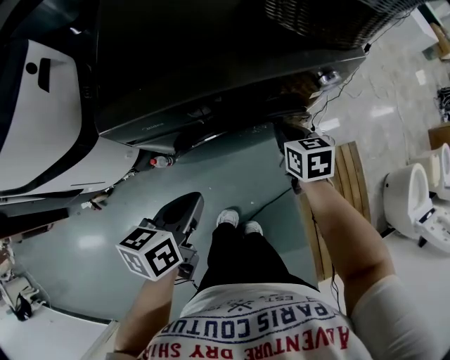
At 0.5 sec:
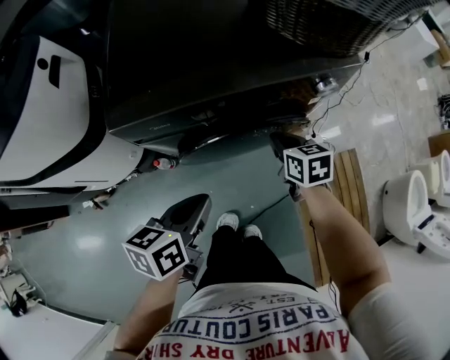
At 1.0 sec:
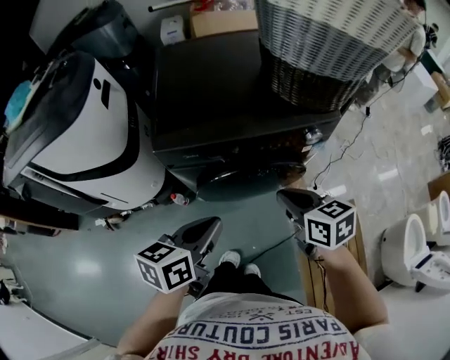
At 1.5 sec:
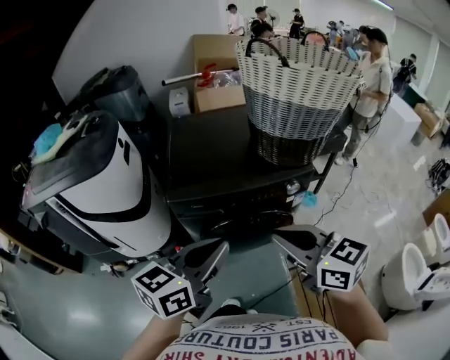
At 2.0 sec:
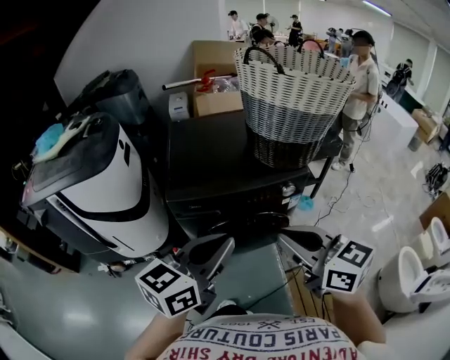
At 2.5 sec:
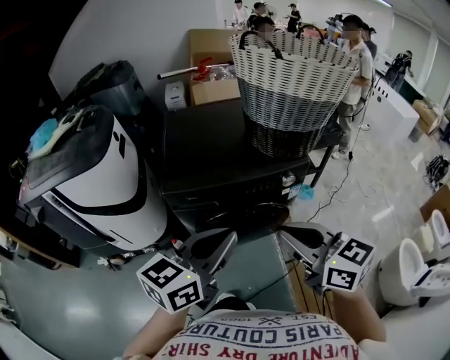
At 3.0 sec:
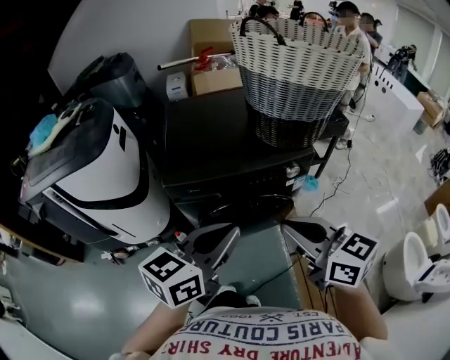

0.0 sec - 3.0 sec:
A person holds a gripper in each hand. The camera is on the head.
0.0 sec - 1.5 sec: The left gripper travels upward by roughly 30 cm, and turns by about 30 degrees. Meanwhile the right gripper shifts about 40 cm upward and backward, and points its fingers approximately 30 degrees further upward.
1.5 sec - 3.0 sec: The grippers stay close to where they were, moving slightly.

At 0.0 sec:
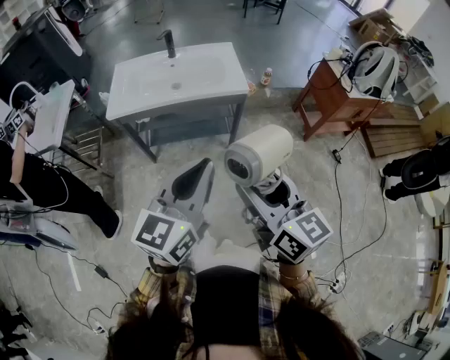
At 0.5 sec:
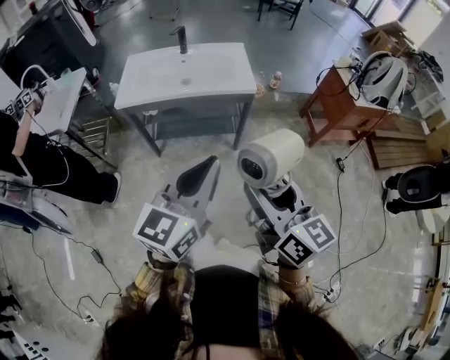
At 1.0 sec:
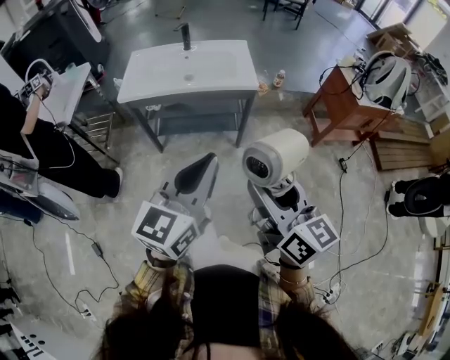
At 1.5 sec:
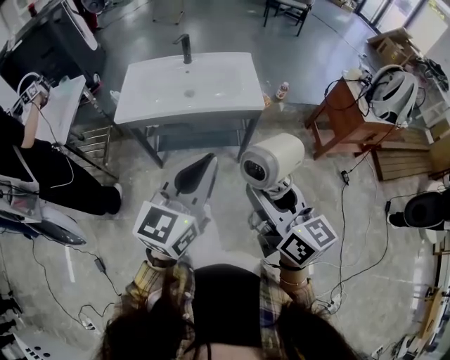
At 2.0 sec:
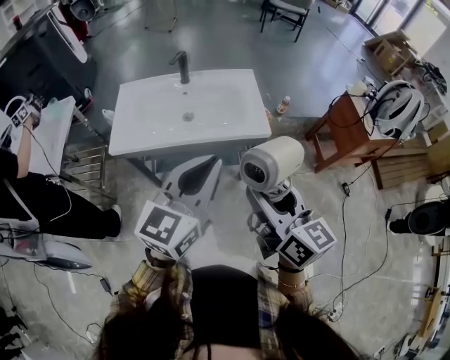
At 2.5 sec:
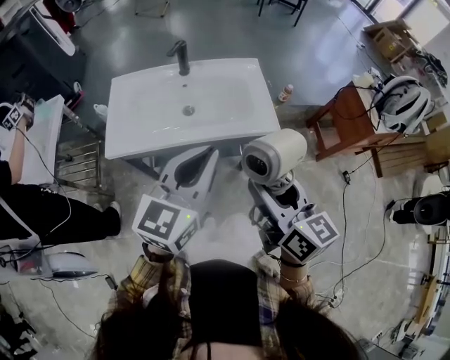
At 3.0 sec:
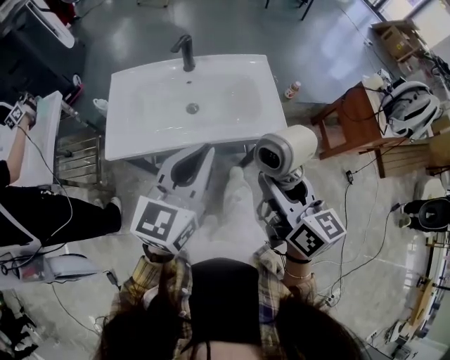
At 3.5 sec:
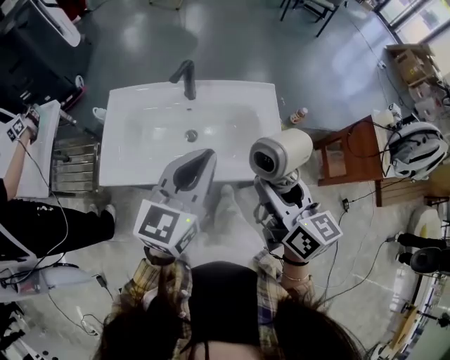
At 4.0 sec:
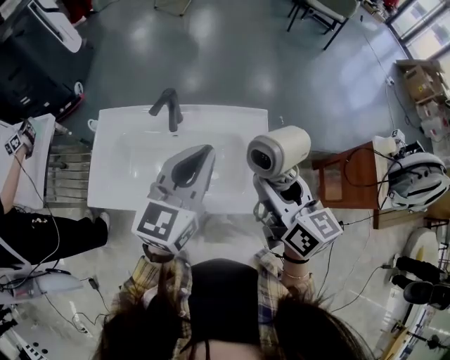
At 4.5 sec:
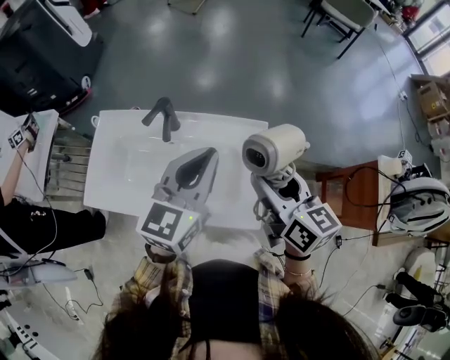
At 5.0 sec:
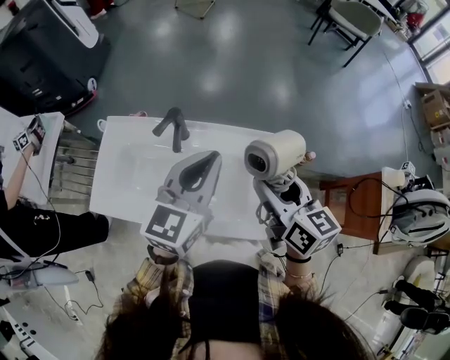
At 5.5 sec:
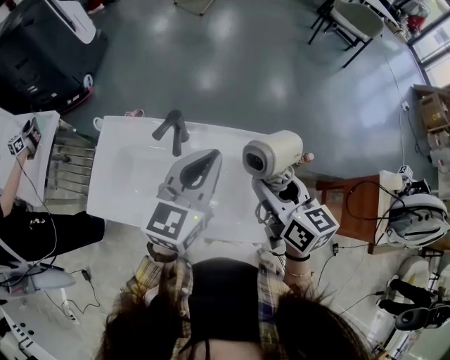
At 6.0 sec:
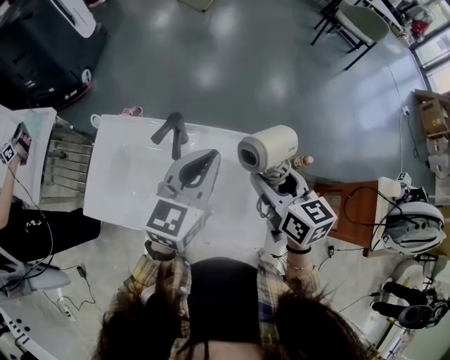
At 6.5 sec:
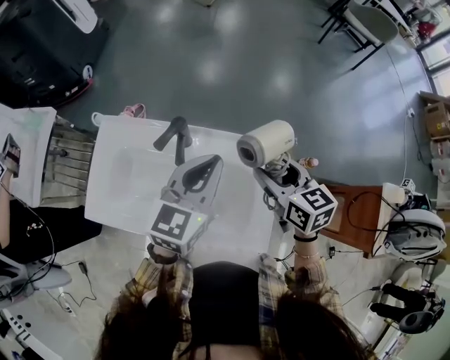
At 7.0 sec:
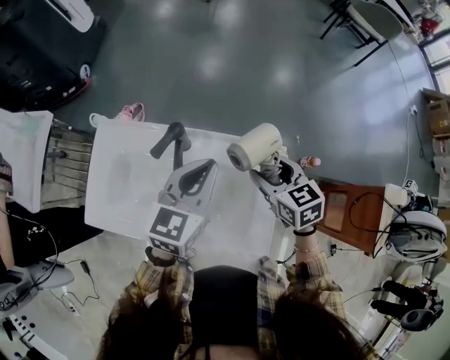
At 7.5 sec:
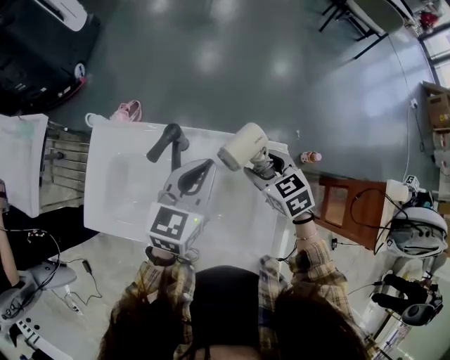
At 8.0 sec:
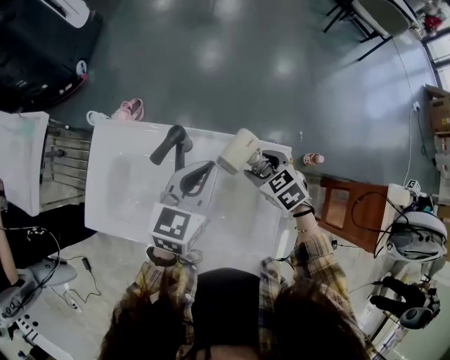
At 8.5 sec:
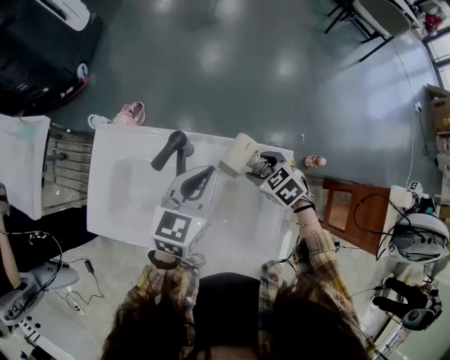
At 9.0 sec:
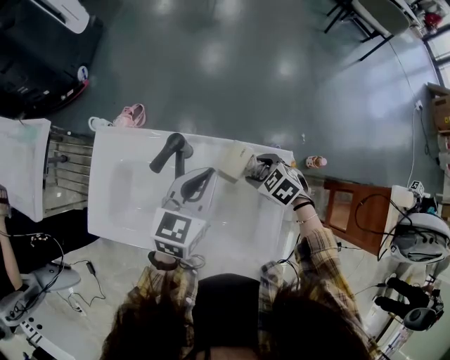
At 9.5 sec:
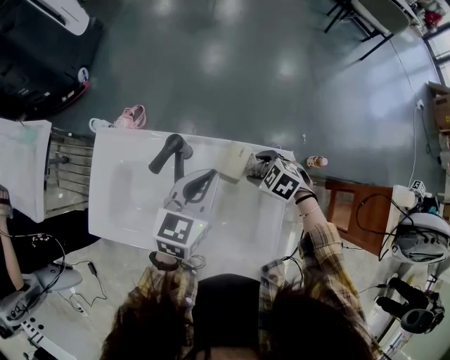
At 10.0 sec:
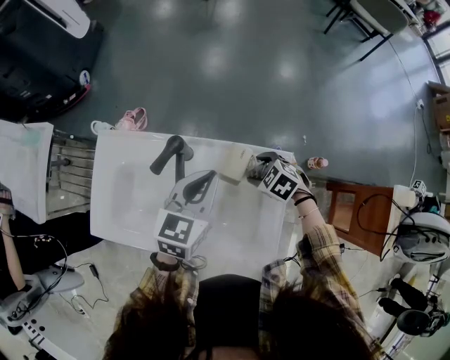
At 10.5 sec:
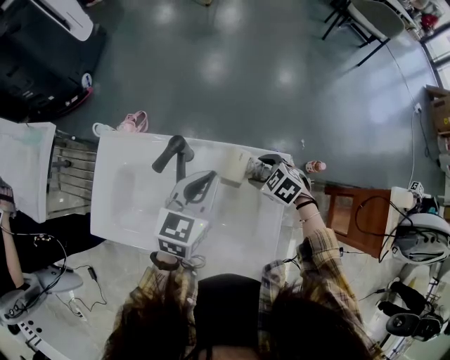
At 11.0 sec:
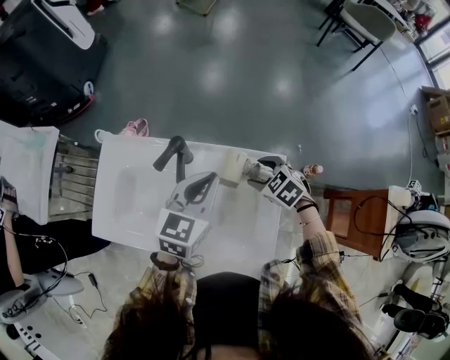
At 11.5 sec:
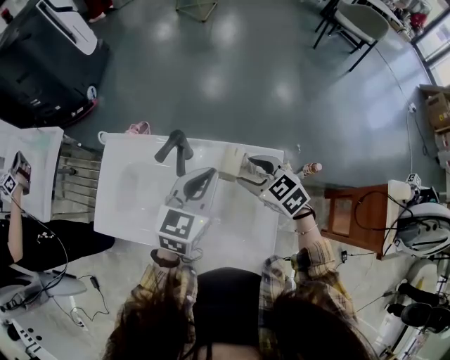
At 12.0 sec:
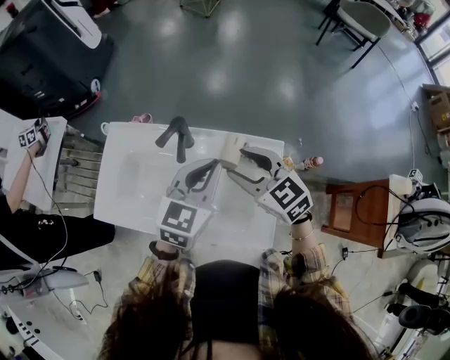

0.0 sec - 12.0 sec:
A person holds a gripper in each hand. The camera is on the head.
0.0 sec - 2.0 sec: The two grippers go roughly 20 cm forward.
2.0 sec - 4.0 sec: The two grippers go about 35 cm forward.
4.0 sec - 6.0 sec: The two grippers go about 15 cm forward.
6.0 sec - 8.0 sec: The right gripper is displaced downward and forward by some 20 cm, and tips its fingers downward by some 30 degrees, while the left gripper travels downward by roughly 10 cm.
8.0 sec - 10.0 sec: The right gripper moves downward, some 5 cm.
10.0 sec - 12.0 sec: The left gripper moves upward and backward, roughly 10 cm; the right gripper shifts some 20 cm upward, and tips its fingers upward by some 40 degrees.

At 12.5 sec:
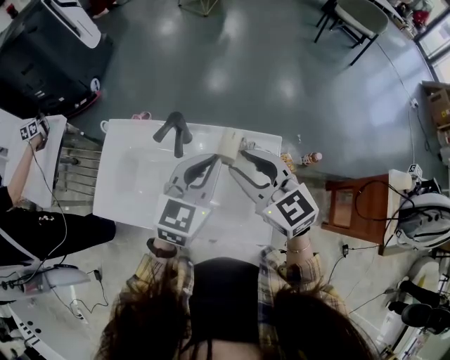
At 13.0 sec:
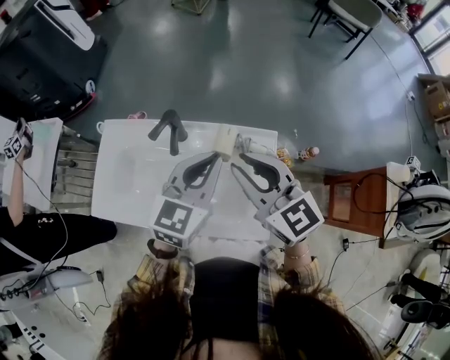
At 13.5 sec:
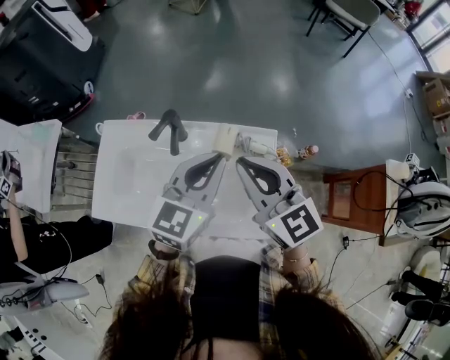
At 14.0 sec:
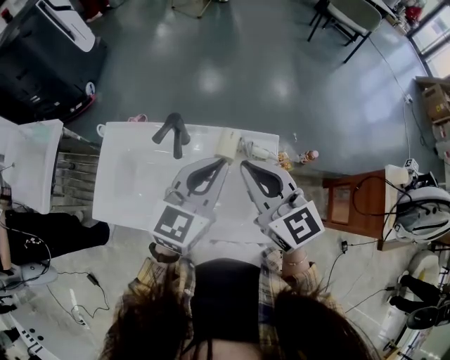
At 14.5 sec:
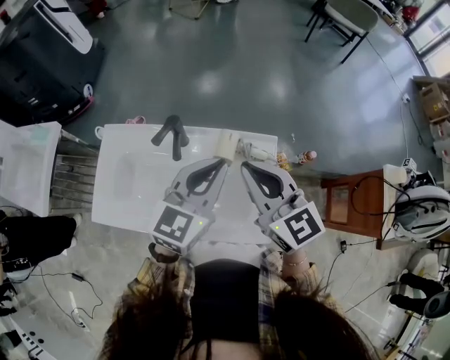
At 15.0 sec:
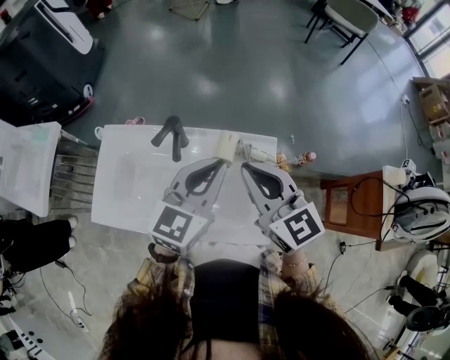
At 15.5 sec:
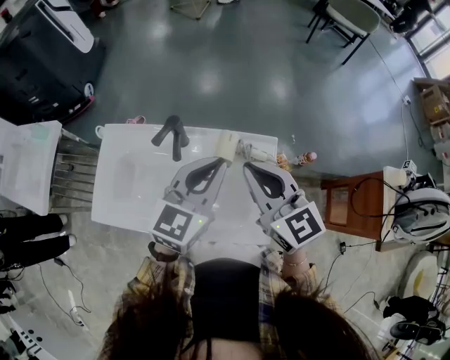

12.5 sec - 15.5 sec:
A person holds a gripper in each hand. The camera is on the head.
12.5 sec - 14.0 sec: The right gripper closes its fingers.
14.0 sec - 15.5 sec: Both grippers stay put.

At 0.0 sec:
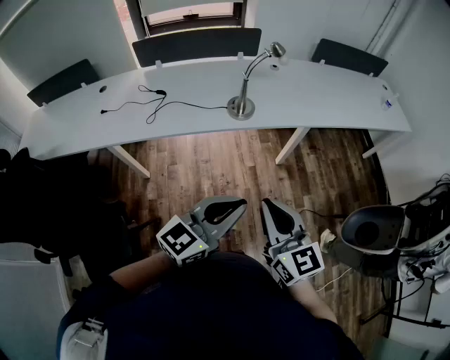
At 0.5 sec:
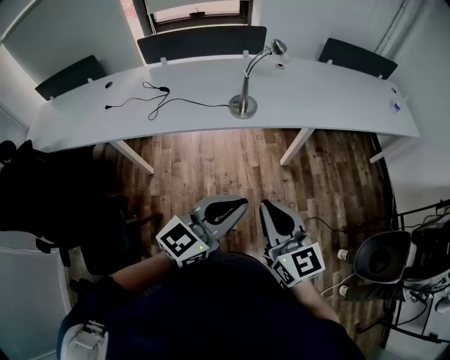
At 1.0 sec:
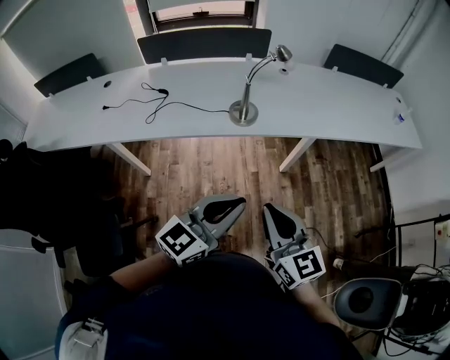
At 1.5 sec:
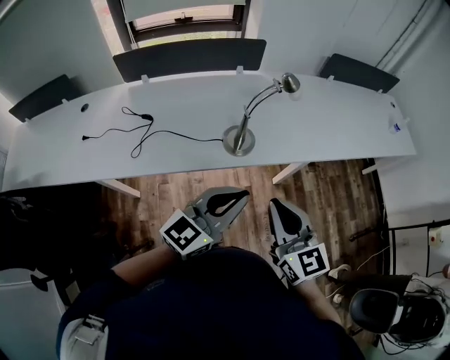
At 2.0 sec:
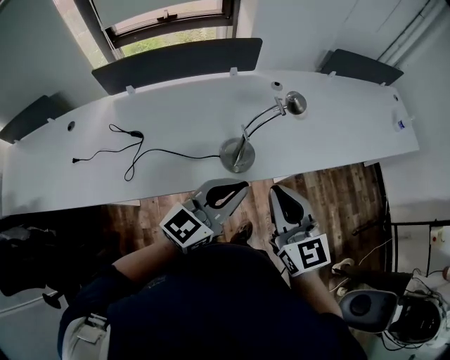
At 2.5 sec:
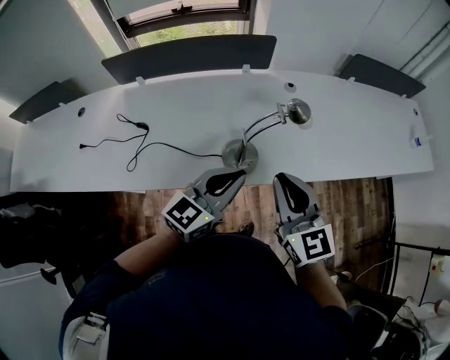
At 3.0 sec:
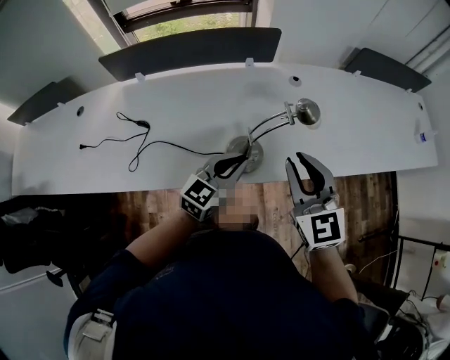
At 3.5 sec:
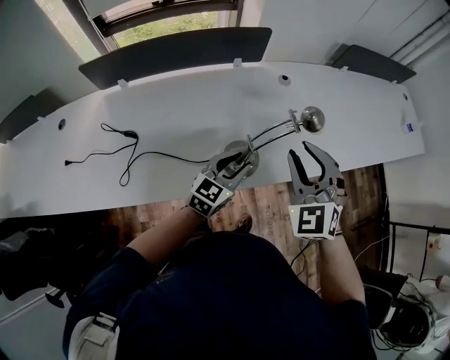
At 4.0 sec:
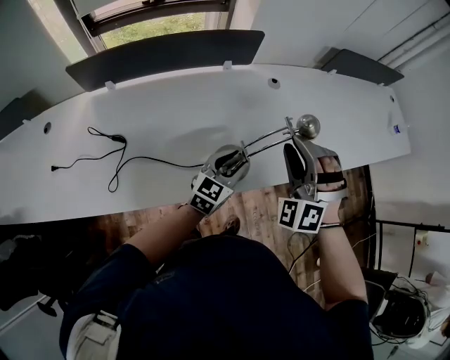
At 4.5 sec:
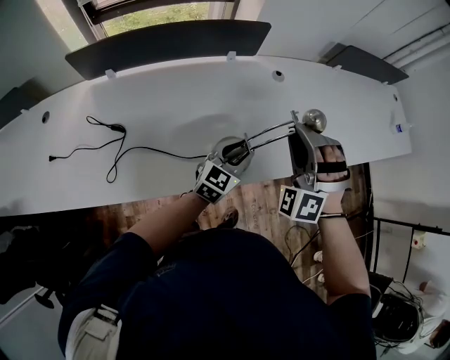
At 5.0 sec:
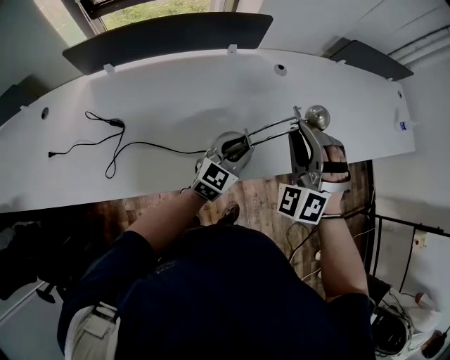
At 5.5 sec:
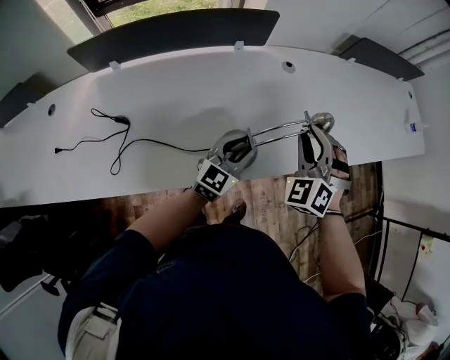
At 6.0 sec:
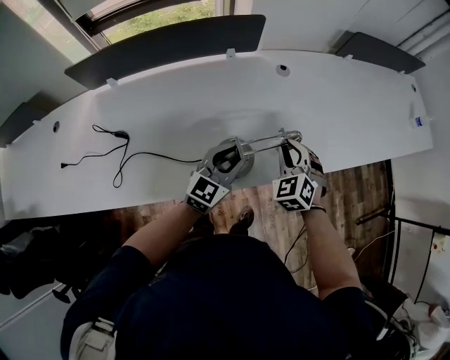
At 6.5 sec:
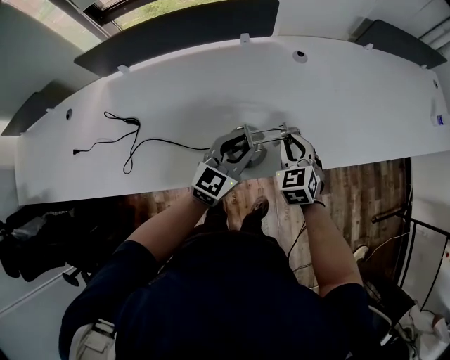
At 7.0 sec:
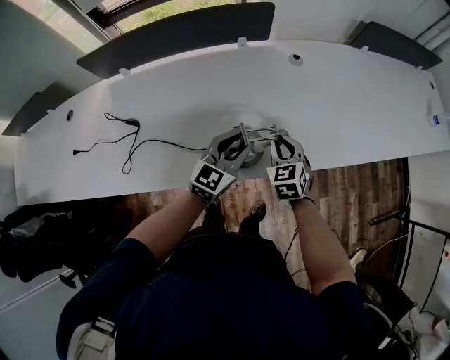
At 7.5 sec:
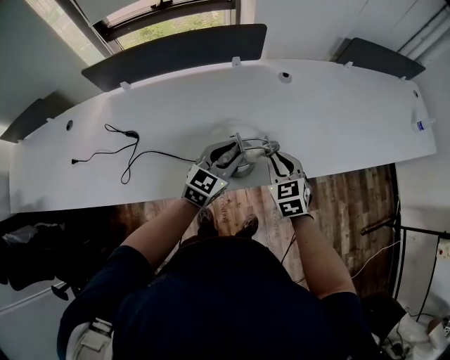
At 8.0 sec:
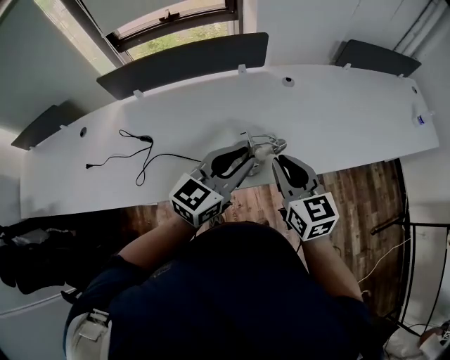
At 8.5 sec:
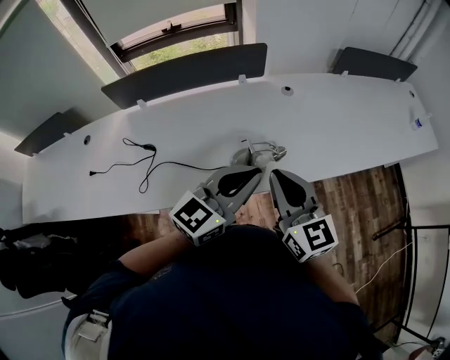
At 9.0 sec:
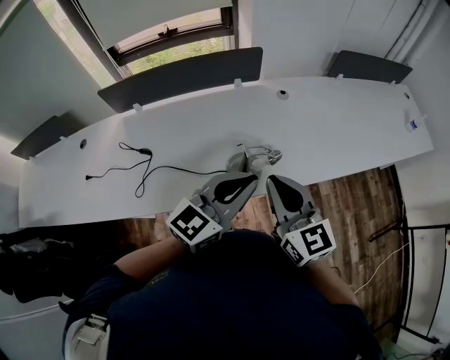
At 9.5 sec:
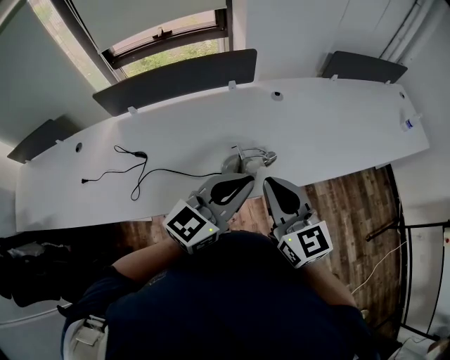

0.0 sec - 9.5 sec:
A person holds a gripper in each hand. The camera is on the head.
0.0 sec - 2.0 sec: The grippers both shift forward by approximately 35 cm.
2.0 sec - 4.0 sec: The right gripper travels forward by approximately 20 cm, rolls counterclockwise, seen from behind, by some 80 degrees, and opens, while the left gripper heads downward and forward, covering roughly 25 cm, and opens.
4.0 sec - 5.5 sec: The right gripper travels downward and forward by roughly 5 cm, and turns by approximately 20 degrees.
5.5 sec - 7.5 sec: The right gripper moves downward, about 15 cm, and rolls clockwise, seen from behind, by some 40 degrees.
7.5 sec - 9.5 sec: The grippers both shift upward and backward by roughly 25 cm. The right gripper angles its fingers upward, by about 30 degrees. The left gripper changes its angle by some 20 degrees, and closes.
